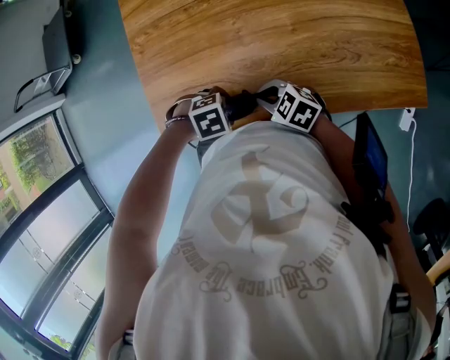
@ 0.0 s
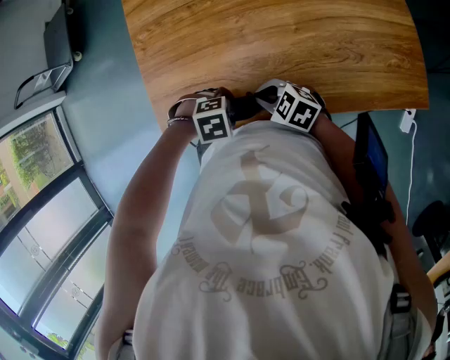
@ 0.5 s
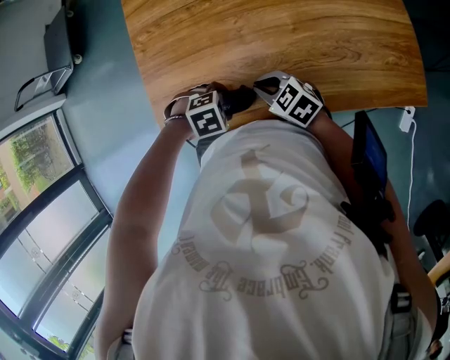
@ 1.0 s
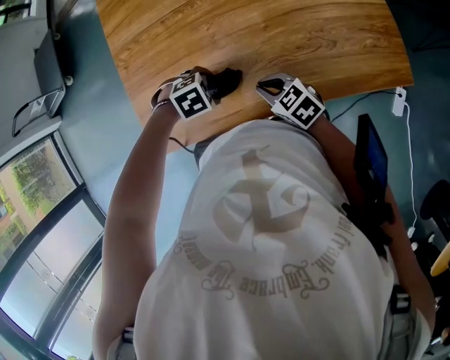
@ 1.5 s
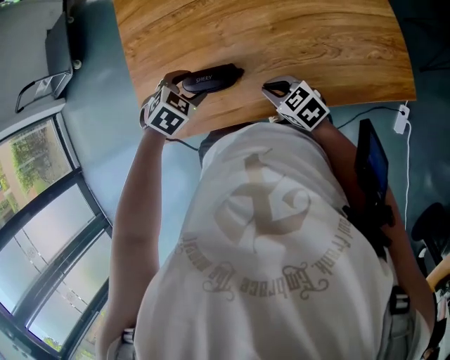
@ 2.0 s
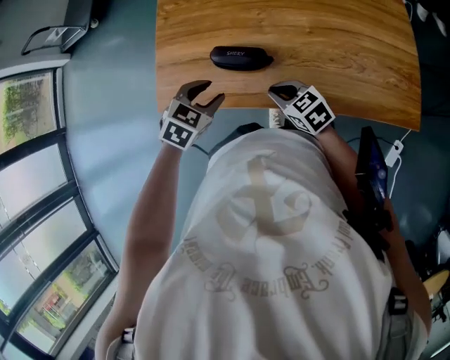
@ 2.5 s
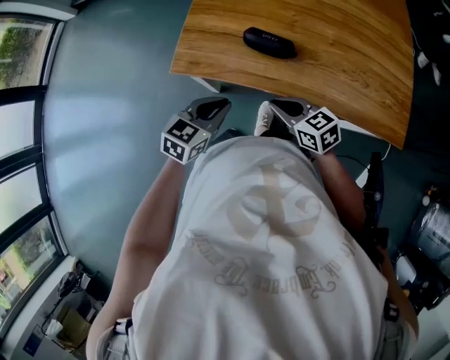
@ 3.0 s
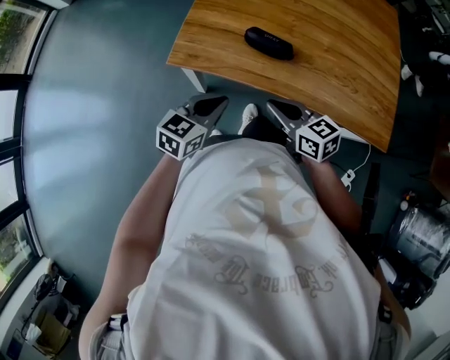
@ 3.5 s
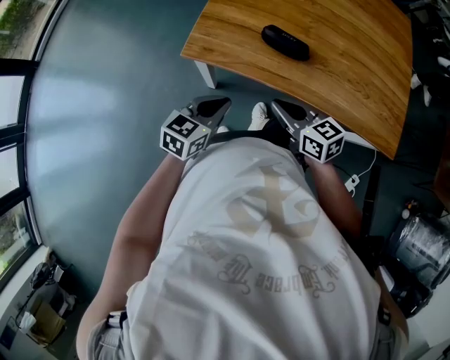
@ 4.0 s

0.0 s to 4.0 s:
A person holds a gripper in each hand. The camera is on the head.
0.0 to 2.0 s: The right gripper moves approximately 10 cm. The left gripper moves some 10 cm, and changes its angle by some 40 degrees.
2.0 to 4.0 s: The right gripper travels to the left, backward and upward by some 25 cm. The left gripper travels backward and to the left by approximately 25 cm, points its fingers some 40 degrees further upward, and closes.

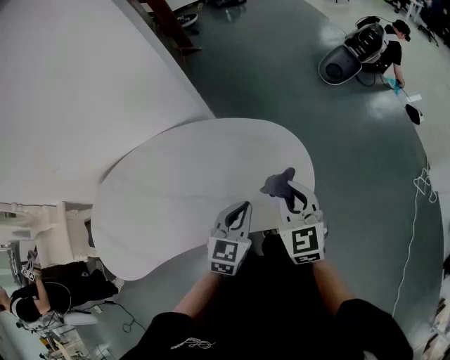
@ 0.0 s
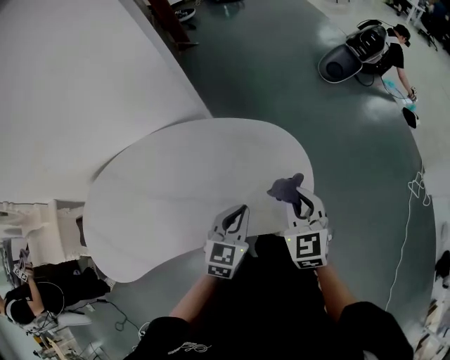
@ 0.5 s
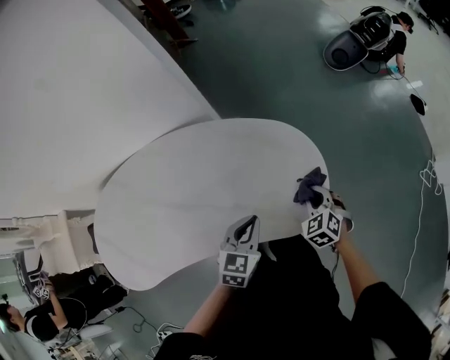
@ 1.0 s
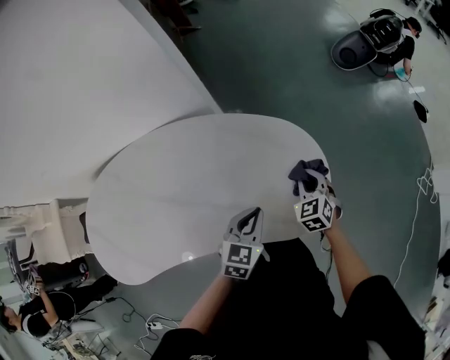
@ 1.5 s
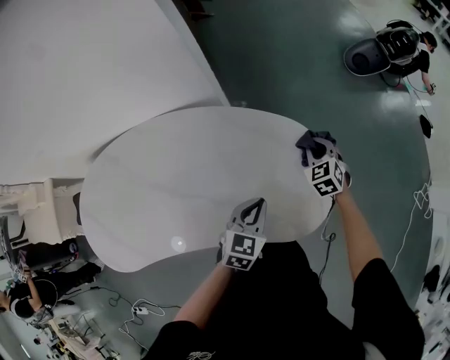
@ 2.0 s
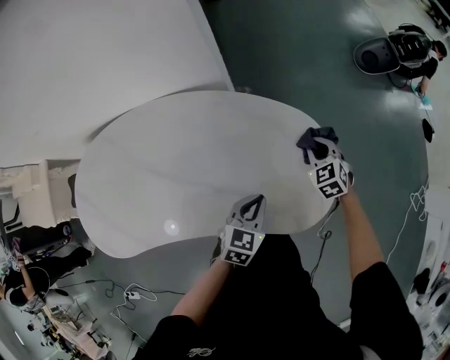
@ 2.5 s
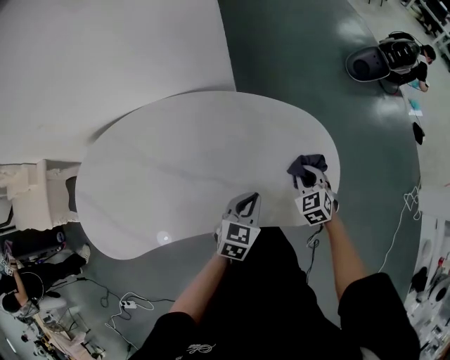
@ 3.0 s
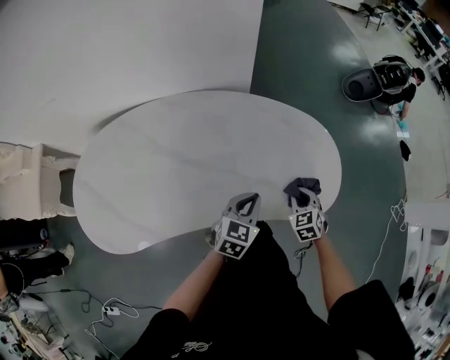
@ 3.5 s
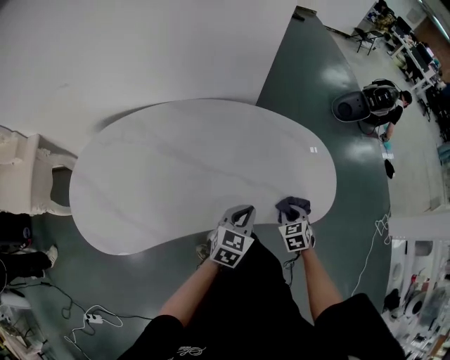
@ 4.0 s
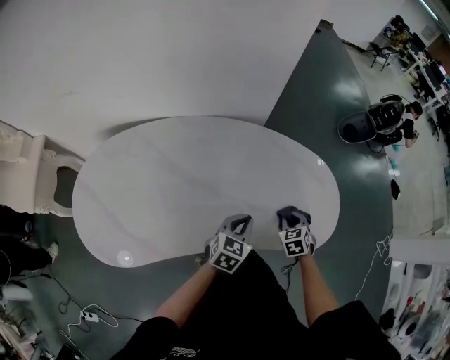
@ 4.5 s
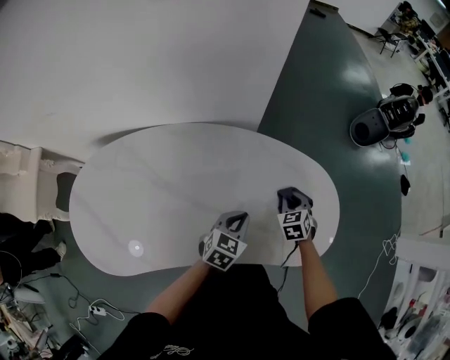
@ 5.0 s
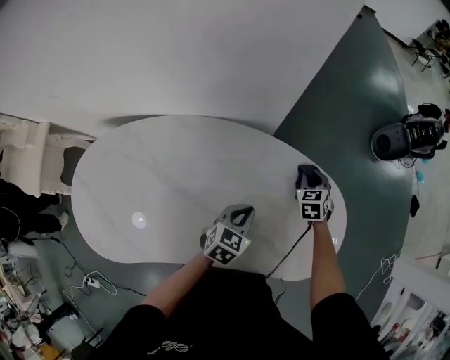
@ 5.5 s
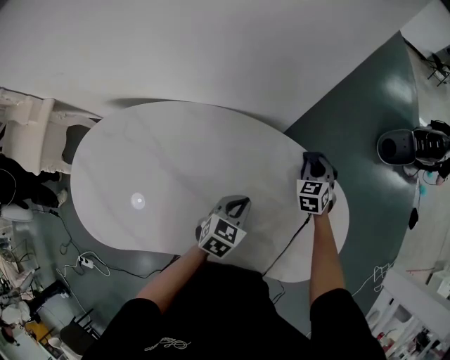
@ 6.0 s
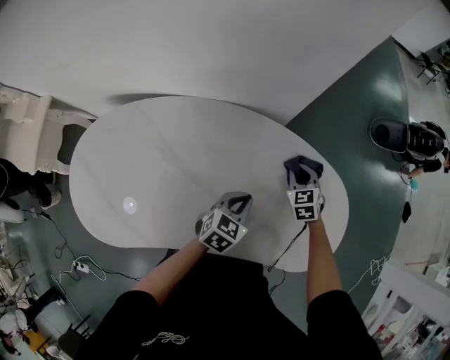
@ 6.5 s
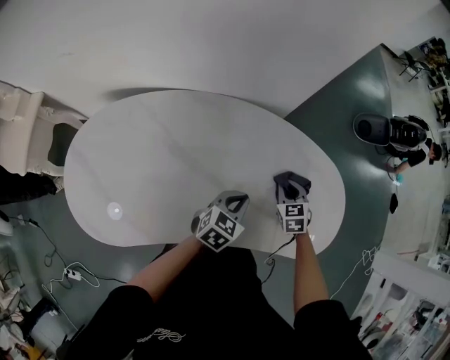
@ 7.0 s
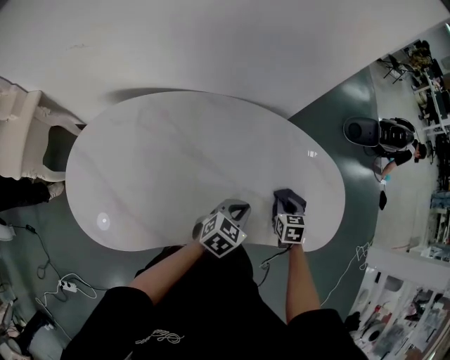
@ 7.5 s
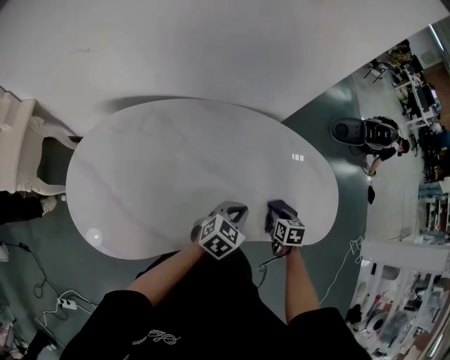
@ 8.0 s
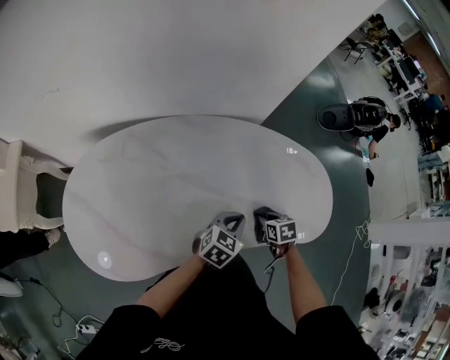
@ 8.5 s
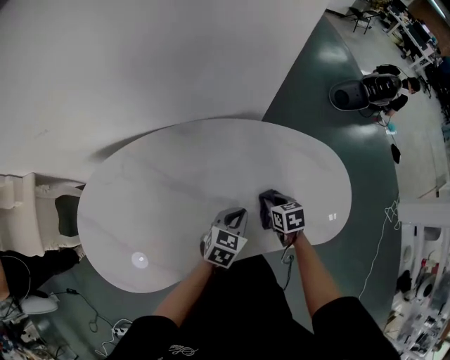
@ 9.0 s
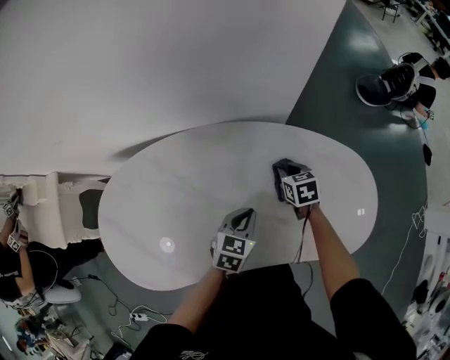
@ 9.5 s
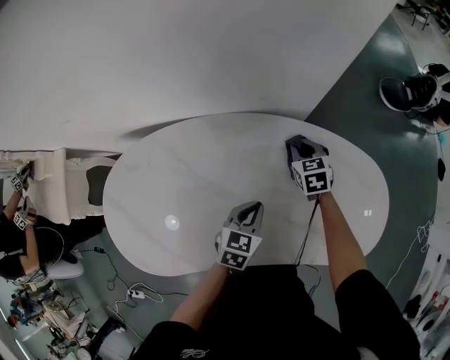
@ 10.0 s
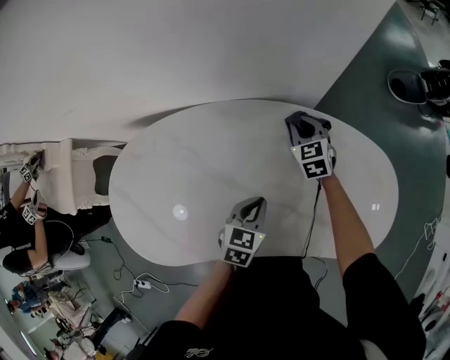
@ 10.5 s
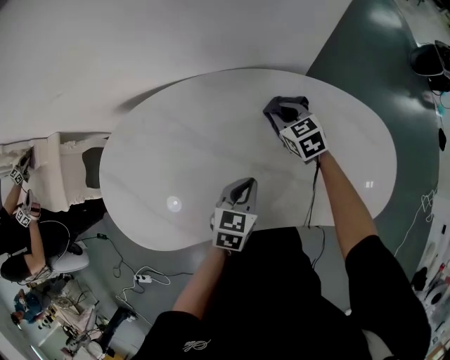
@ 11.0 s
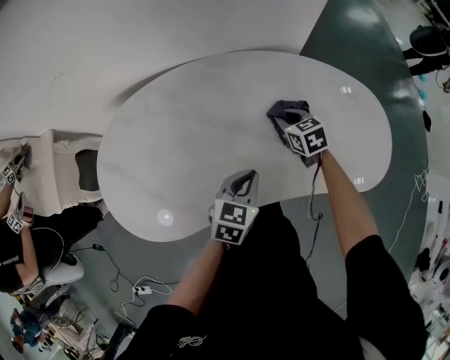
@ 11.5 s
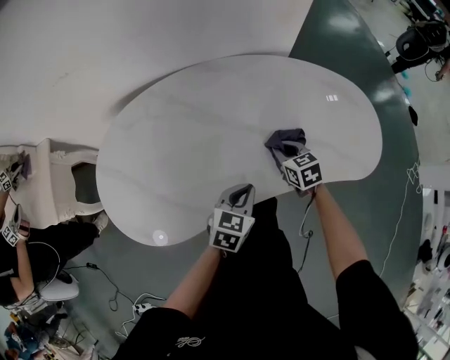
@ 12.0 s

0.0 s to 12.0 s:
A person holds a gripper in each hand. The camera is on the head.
0.0 to 2.0 s: The right gripper goes about 30 cm forward and downward, and changes its angle by some 30 degrees. Meanwhile the left gripper travels downward and forward by some 10 cm.
2.0 to 4.0 s: The right gripper shifts some 30 cm backward and to the left, while the left gripper moves to the left and backward, approximately 20 cm.
4.0 to 6.0 s: The right gripper is displaced forward by roughly 35 cm, while the left gripper goes some 20 cm forward.
6.0 to 8.0 s: The right gripper goes approximately 35 cm backward, and changes its angle by approximately 40 degrees. The left gripper goes about 20 cm backward and to the left, and changes its angle by approximately 20 degrees.
8.0 to 10.0 s: The right gripper travels forward by approximately 25 cm, and rotates about 20 degrees; the left gripper shifts about 10 cm forward, and swivels approximately 20 degrees.
10.0 to 12.0 s: The left gripper is displaced backward and to the left by about 20 cm, while the right gripper is displaced backward by roughly 30 cm.

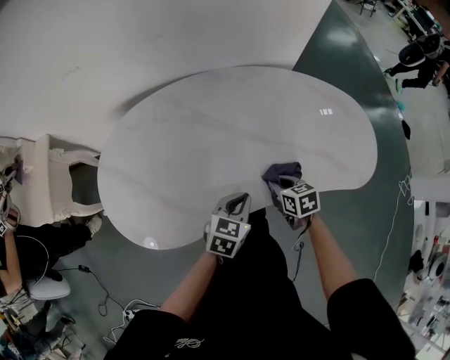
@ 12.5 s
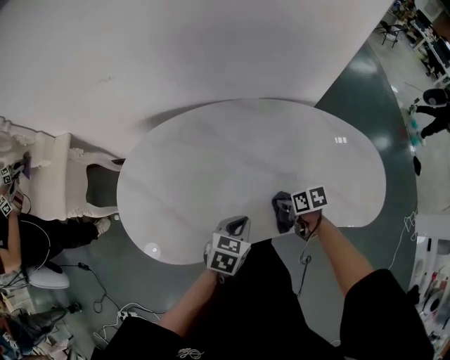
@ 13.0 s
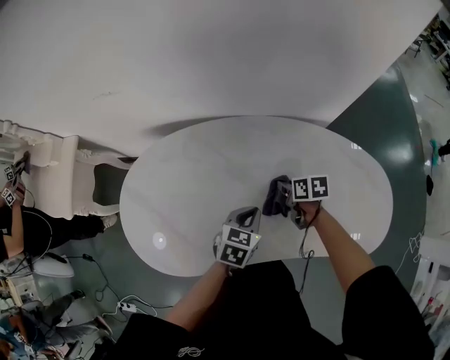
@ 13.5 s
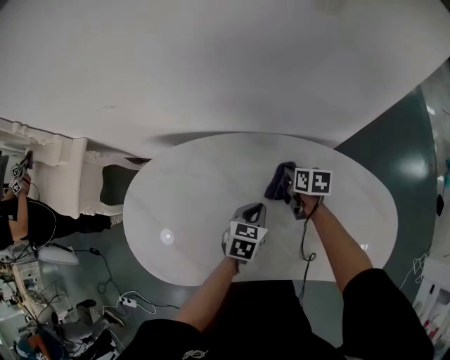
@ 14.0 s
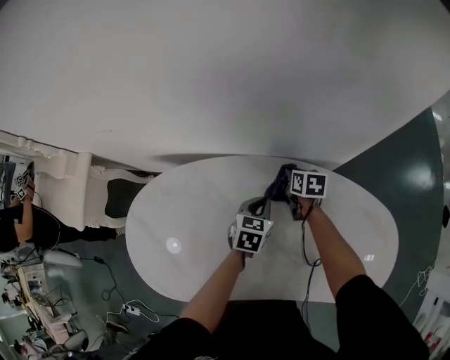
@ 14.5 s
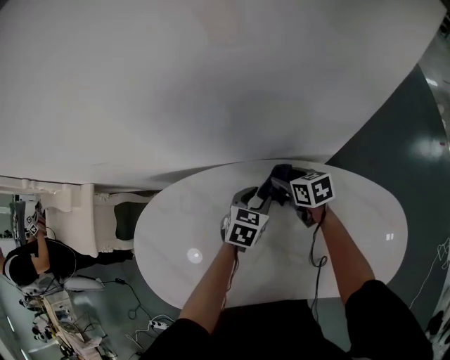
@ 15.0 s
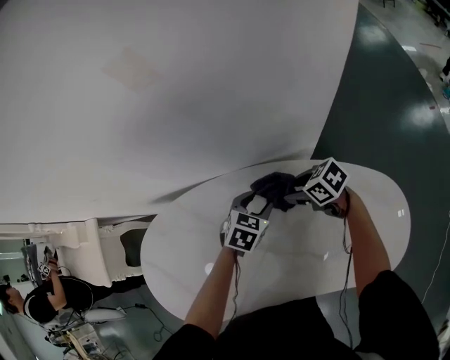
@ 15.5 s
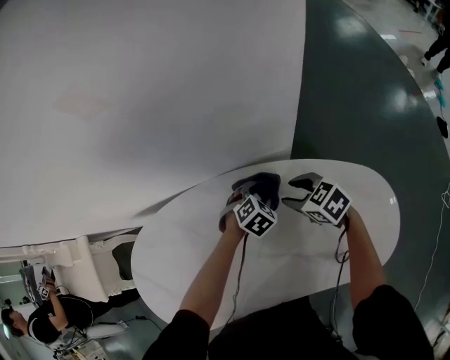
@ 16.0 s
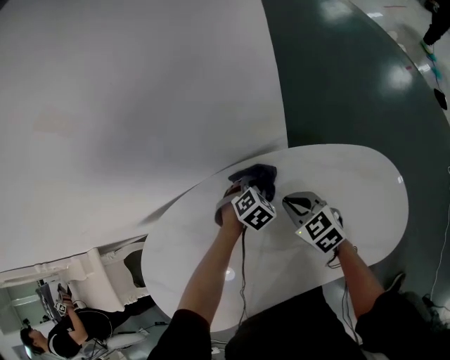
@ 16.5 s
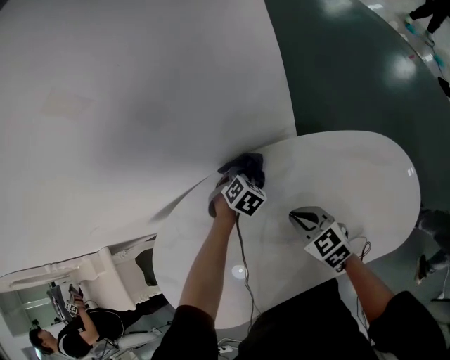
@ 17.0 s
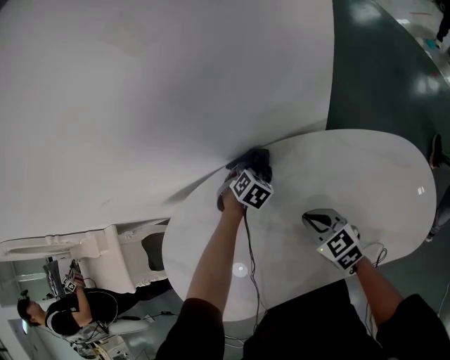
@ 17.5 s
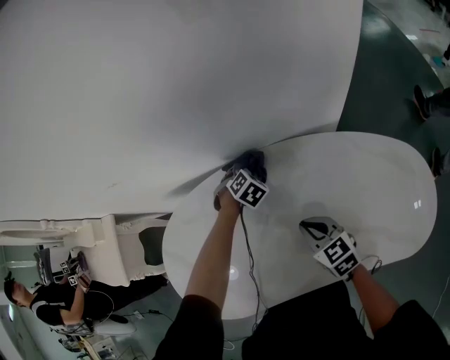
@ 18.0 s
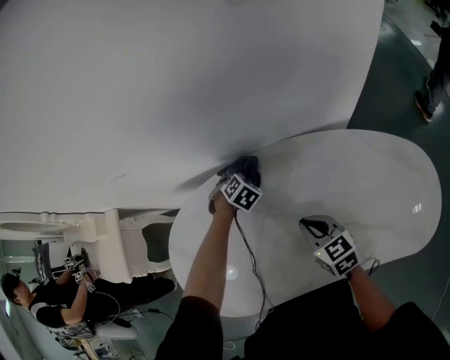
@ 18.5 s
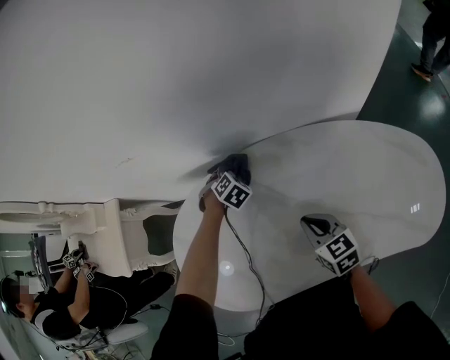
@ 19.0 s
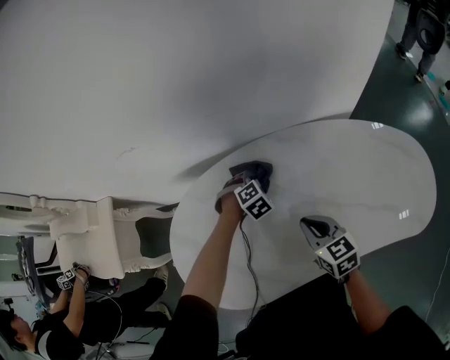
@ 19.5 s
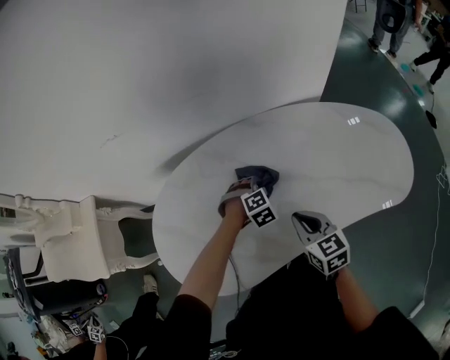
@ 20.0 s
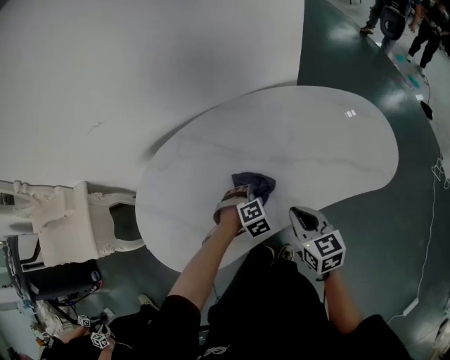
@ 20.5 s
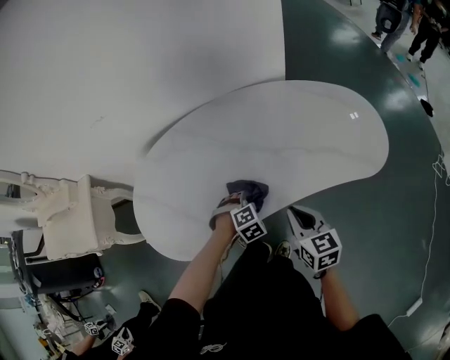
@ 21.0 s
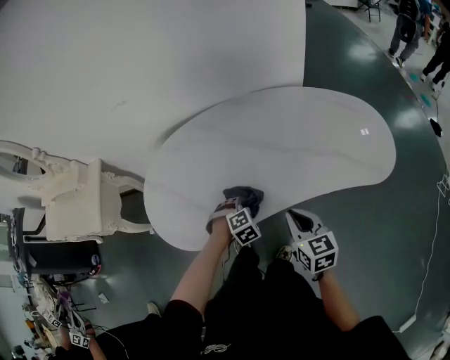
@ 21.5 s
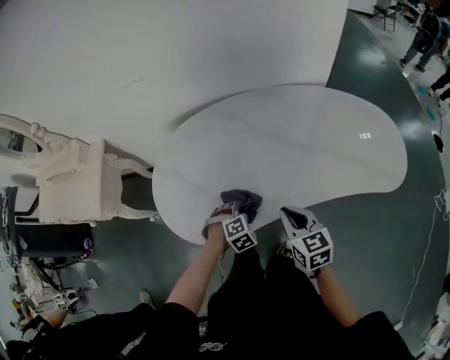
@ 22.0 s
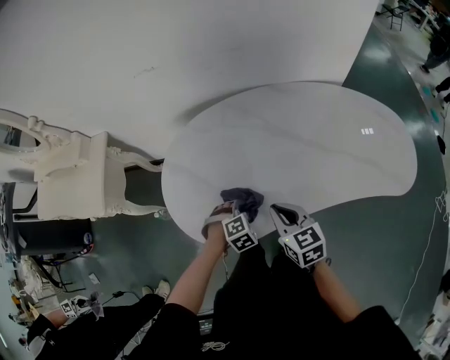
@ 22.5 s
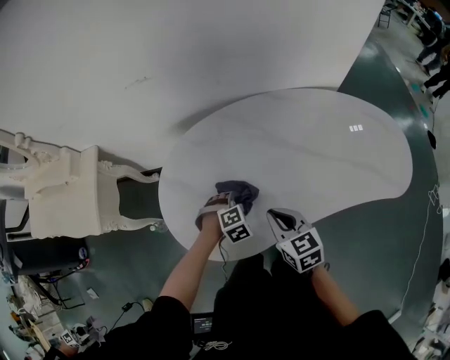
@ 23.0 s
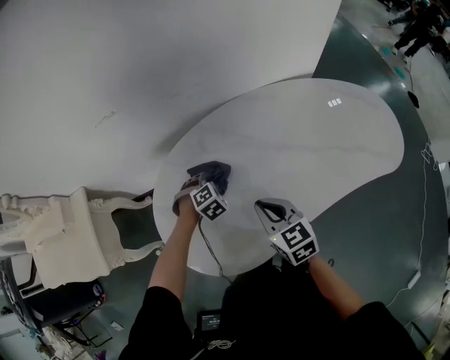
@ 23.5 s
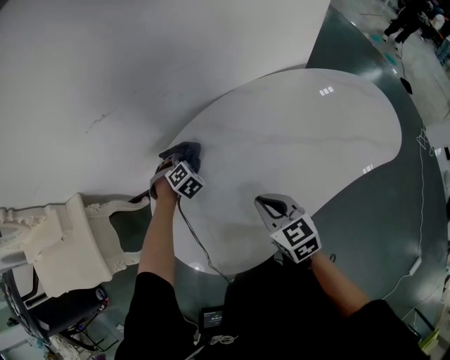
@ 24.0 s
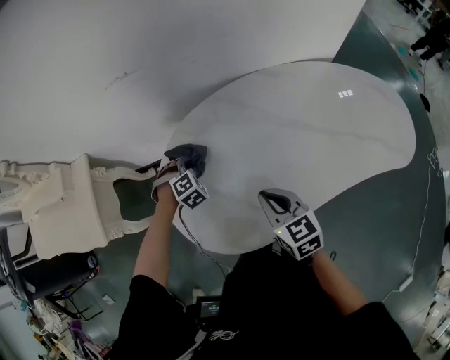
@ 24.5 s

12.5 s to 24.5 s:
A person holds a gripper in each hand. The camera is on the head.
12.5 to 14.5 s: Both grippers move forward, roughly 35 cm. The left gripper swivels roughly 20 degrees.
14.5 to 16.5 s: The right gripper shifts some 20 cm backward, to the right and upward, changes its angle by approximately 30 degrees, and opens, then closes again; the left gripper moves to the right, roughly 15 cm, rolls clockwise, seen from behind, by roughly 60 degrees, and opens and closes again.
16.5 to 18.5 s: The two grippers go roughly 25 cm to the left. The left gripper rotates approximately 20 degrees.
18.5 to 20.5 s: The left gripper changes place by some 35 cm, and changes its angle by approximately 30 degrees. The right gripper shifts by about 20 cm, and swivels about 20 degrees.
20.5 to 22.5 s: The left gripper travels to the left and backward by approximately 20 cm, while the right gripper travels to the left by roughly 20 cm.
22.5 to 24.5 s: The right gripper moves forward and to the left, about 10 cm, while the left gripper is displaced forward and to the left by approximately 30 cm.
